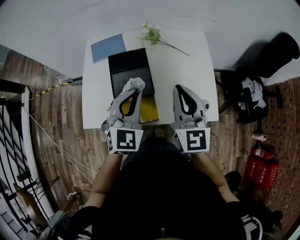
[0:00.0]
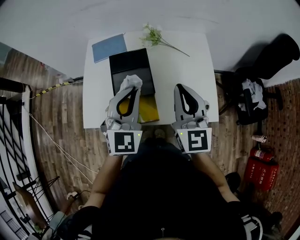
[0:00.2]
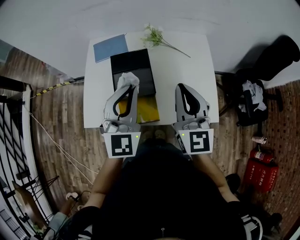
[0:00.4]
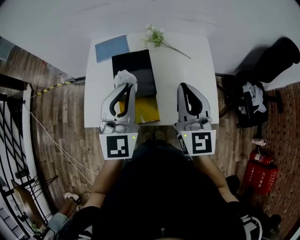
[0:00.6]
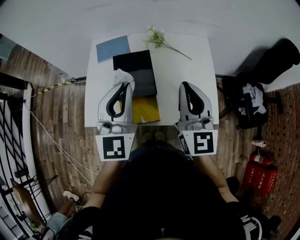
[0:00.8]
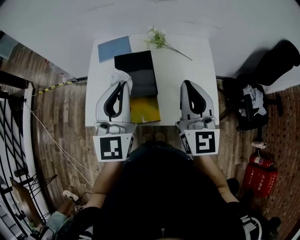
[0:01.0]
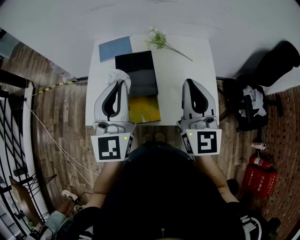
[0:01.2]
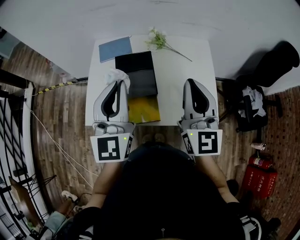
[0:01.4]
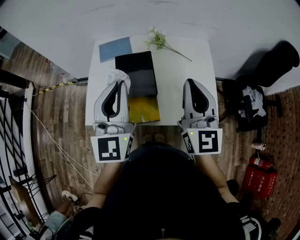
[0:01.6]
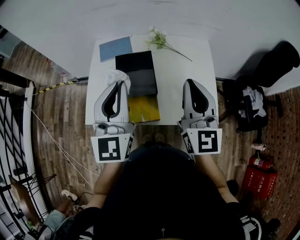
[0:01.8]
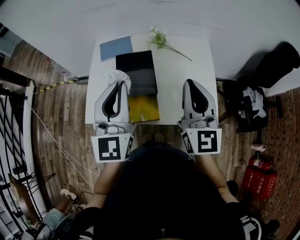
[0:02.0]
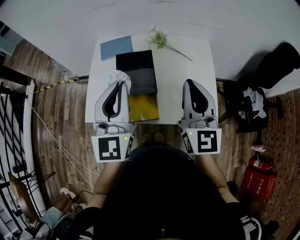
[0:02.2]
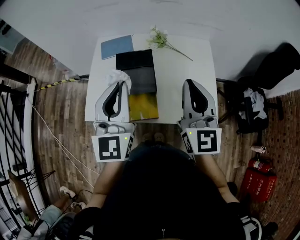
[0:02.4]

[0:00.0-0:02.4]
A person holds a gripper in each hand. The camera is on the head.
0.0 to 1.2 s: The right gripper goes approximately 5 cm upward. Meanwhile the left gripper moves upward and to the left, approximately 15 cm, and swivels about 30 degrees.
1.2 to 2.4 s: There are only small adjustments of the grippers.

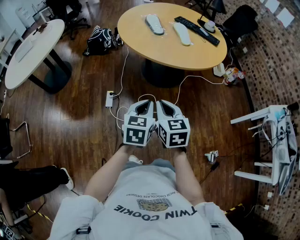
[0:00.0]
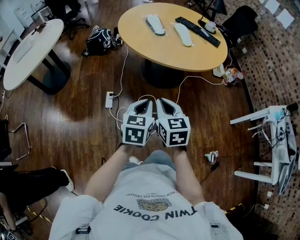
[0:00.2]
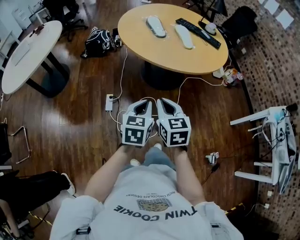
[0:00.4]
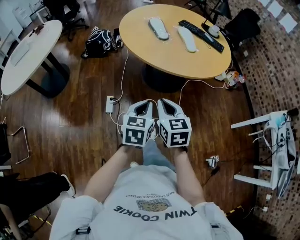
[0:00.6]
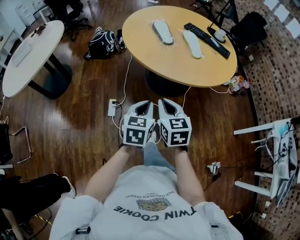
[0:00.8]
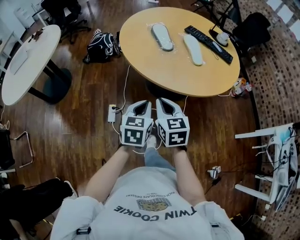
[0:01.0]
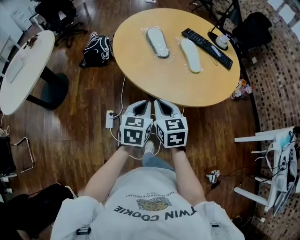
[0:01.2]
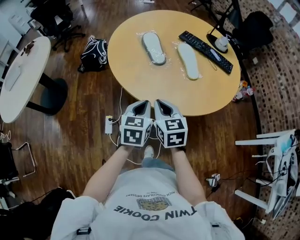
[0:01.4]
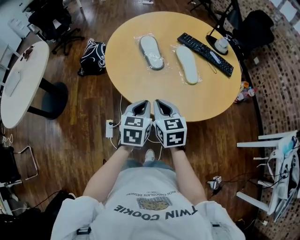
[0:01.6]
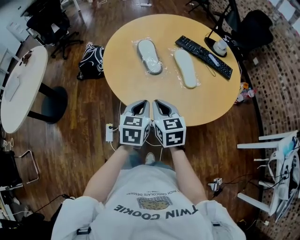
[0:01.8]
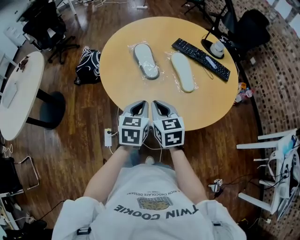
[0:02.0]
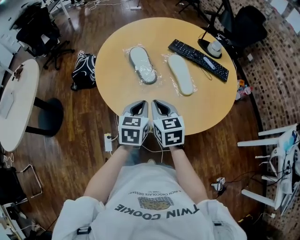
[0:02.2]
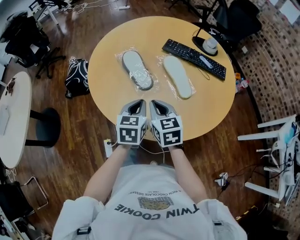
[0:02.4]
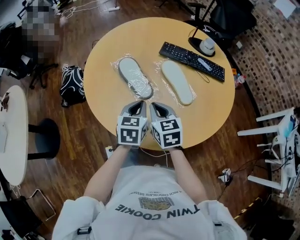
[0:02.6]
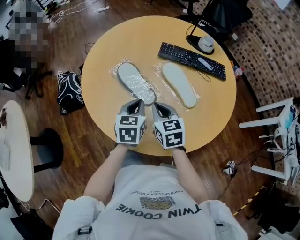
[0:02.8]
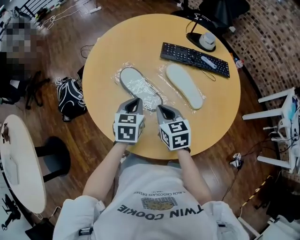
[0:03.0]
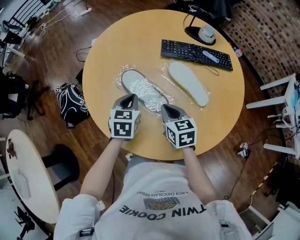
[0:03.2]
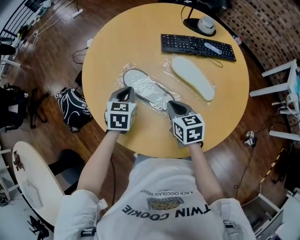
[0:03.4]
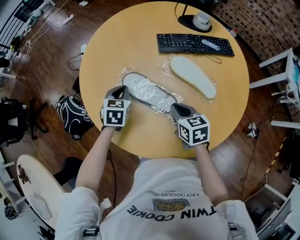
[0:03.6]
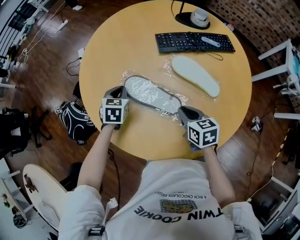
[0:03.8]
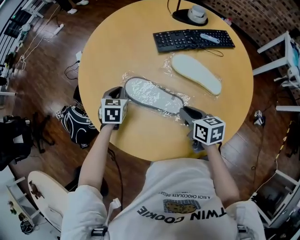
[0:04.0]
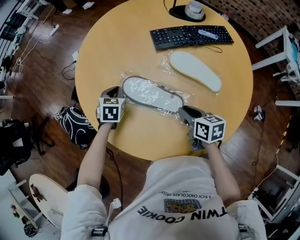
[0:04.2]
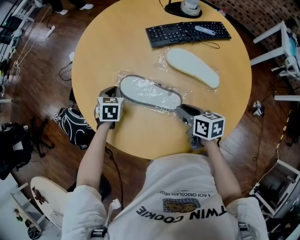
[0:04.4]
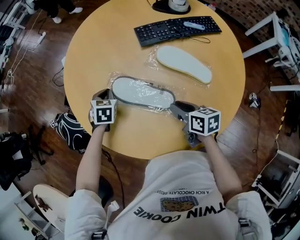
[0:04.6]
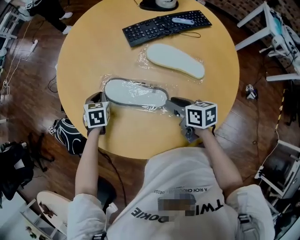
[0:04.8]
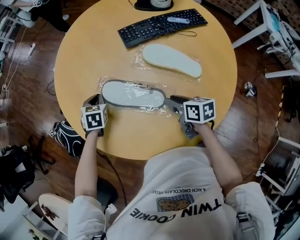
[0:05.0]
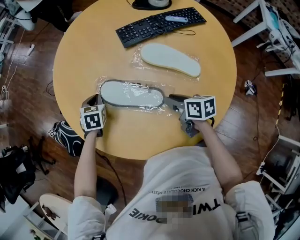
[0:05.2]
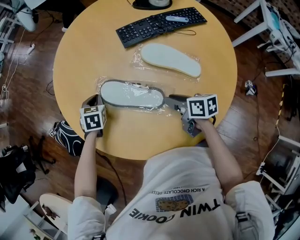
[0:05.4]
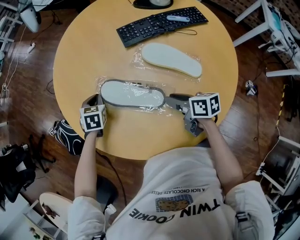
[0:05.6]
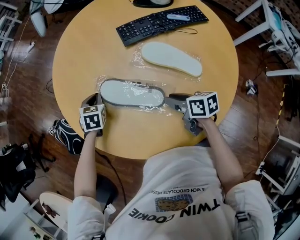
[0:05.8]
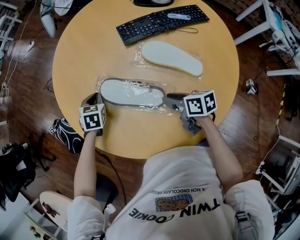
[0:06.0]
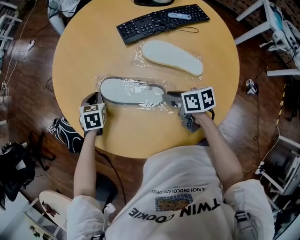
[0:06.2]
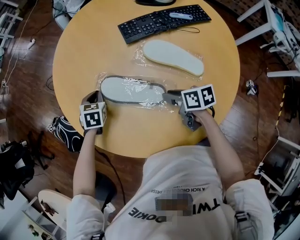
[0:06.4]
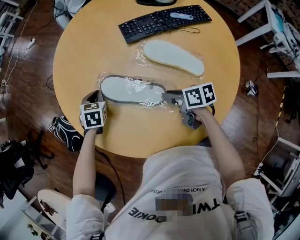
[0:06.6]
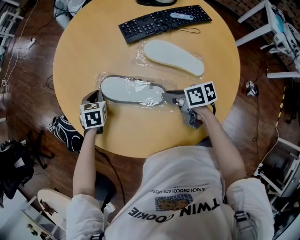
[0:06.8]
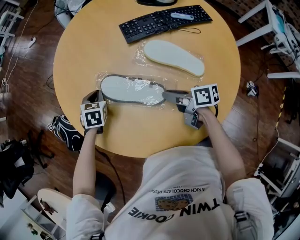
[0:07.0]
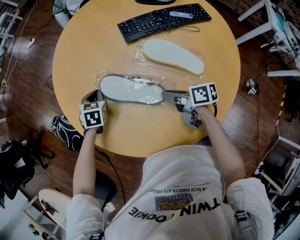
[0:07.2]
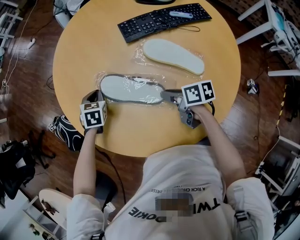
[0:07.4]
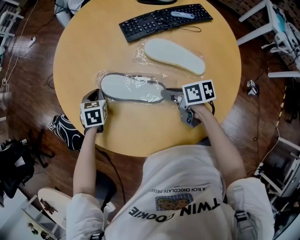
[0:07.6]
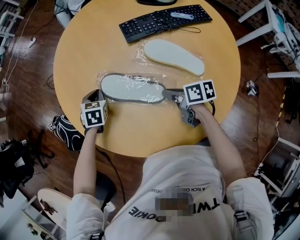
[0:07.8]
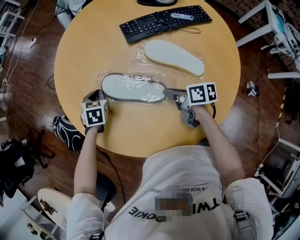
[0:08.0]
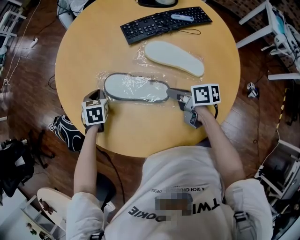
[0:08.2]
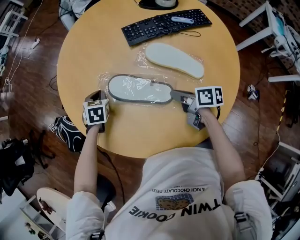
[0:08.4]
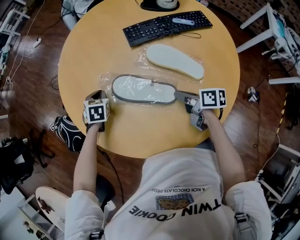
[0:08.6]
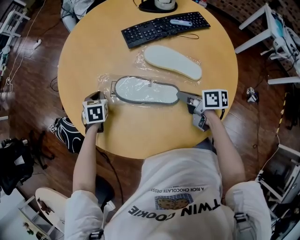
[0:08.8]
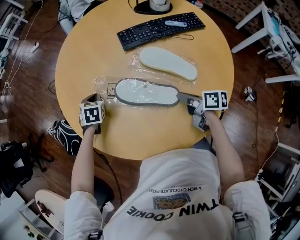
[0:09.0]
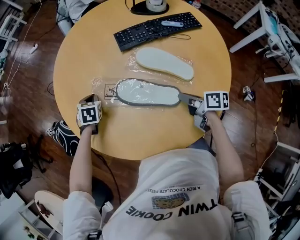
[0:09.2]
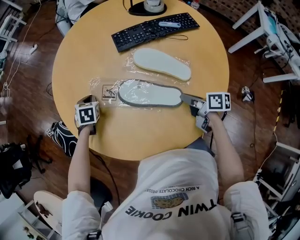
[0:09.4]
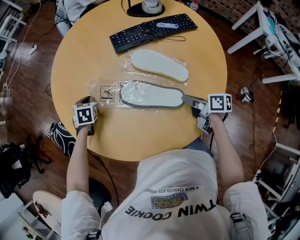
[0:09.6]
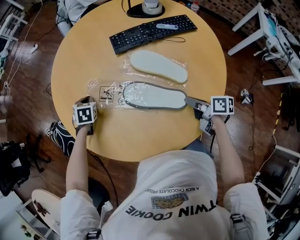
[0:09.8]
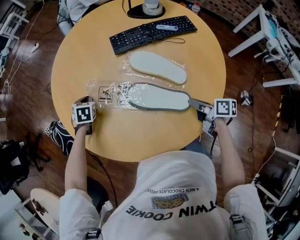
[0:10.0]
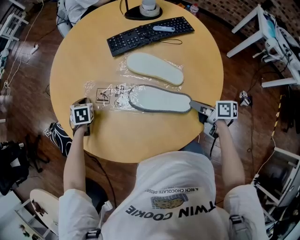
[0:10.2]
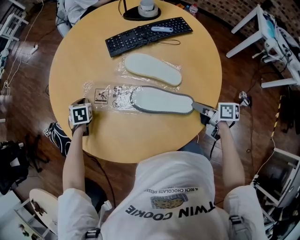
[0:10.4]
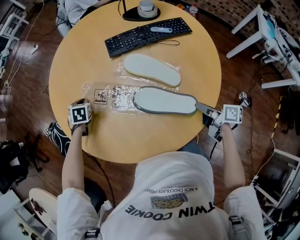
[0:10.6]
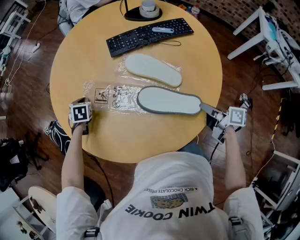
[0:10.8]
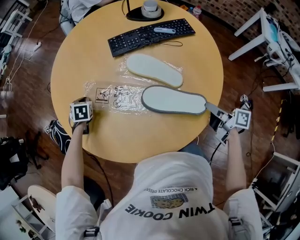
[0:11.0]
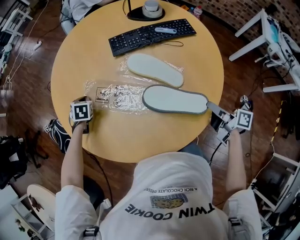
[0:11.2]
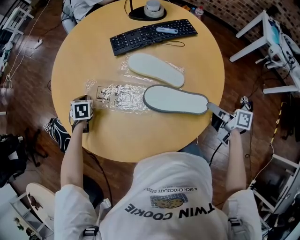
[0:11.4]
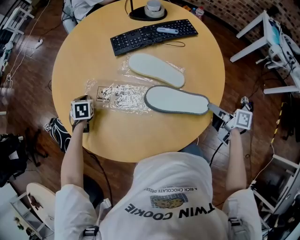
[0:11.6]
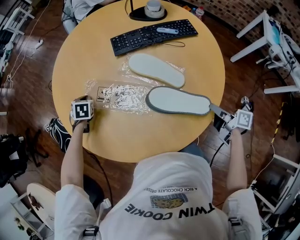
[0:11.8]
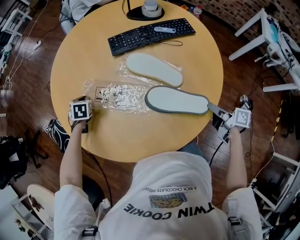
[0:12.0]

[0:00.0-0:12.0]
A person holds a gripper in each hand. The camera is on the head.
0.0 to 1.6 s: The two grippers go about 40 cm forward.
1.6 to 3.0 s: The grippers both shift forward by some 30 cm. The left gripper swivels about 20 degrees. Meanwhile the right gripper changes its angle by approximately 20 degrees.
3.0 to 4.4 s: The right gripper is displaced downward by some 10 cm, turns by roughly 40 degrees, and opens. Meanwhile the left gripper is displaced forward, to the left and downward by about 25 cm, and turns by roughly 30 degrees.
4.4 to 6.0 s: The grippers make only small movements.
6.0 to 7.6 s: There are only small adjustments of the grippers.
7.6 to 9.0 s: The right gripper travels to the right and backward by approximately 10 cm.
9.0 to 10.4 s: The right gripper is displaced backward and to the right by roughly 15 cm.
10.4 to 12.0 s: The right gripper is displaced to the right by approximately 5 cm.

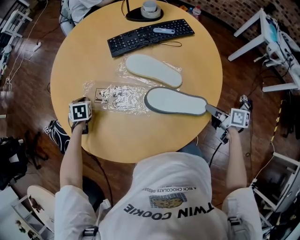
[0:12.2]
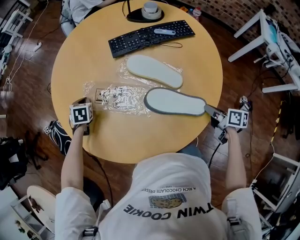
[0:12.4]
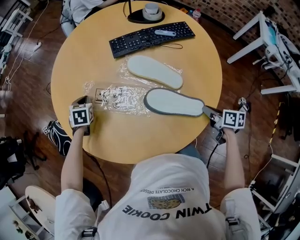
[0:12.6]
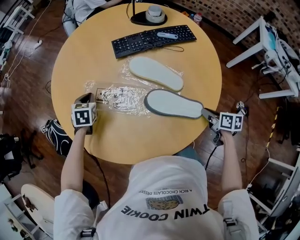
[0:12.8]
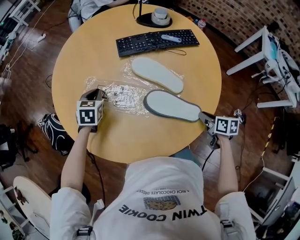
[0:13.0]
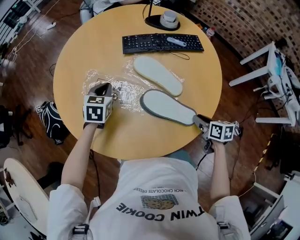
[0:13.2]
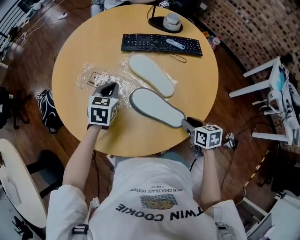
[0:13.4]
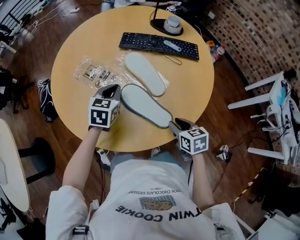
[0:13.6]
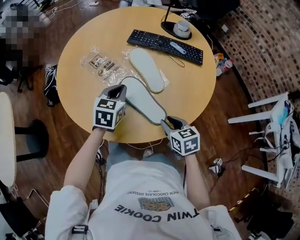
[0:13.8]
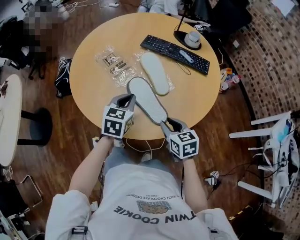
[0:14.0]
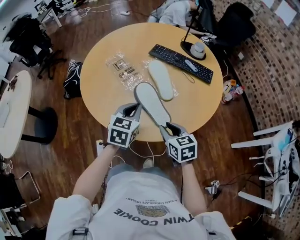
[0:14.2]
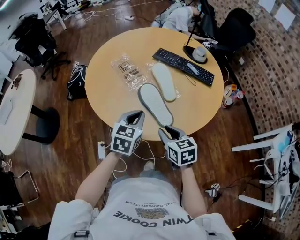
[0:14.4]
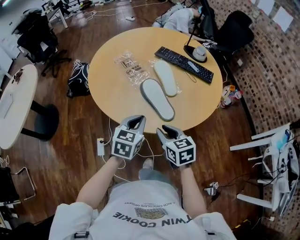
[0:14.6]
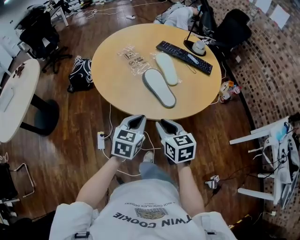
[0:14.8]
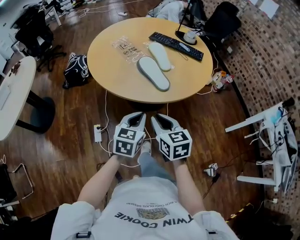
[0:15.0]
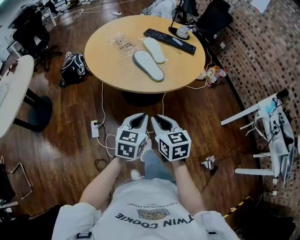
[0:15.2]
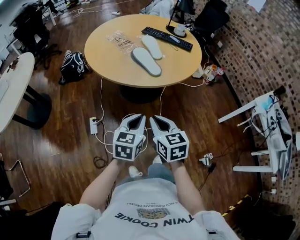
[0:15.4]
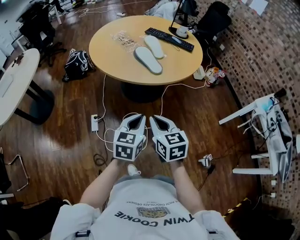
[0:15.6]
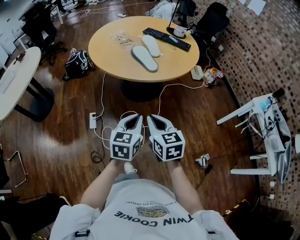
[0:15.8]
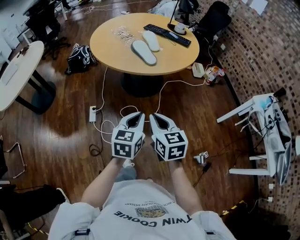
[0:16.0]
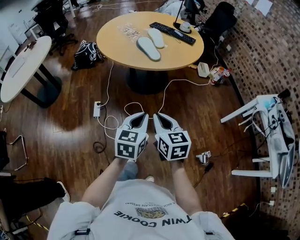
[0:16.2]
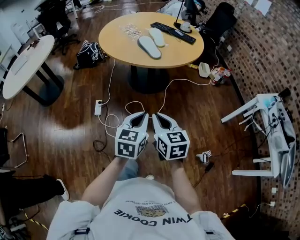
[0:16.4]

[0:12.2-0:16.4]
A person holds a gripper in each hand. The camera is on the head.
12.2 to 13.6 s: The left gripper heads to the right, backward and upward, covering about 30 cm, and rotates about 30 degrees, while the right gripper rotates around the line of its fingers by about 50 degrees, counterclockwise from behind.
13.6 to 15.0 s: The left gripper travels backward by some 40 cm, while the right gripper travels backward, upward and to the left by some 30 cm, and turns by roughly 30 degrees.
15.0 to 16.4 s: The grippers both shift backward by approximately 30 cm.

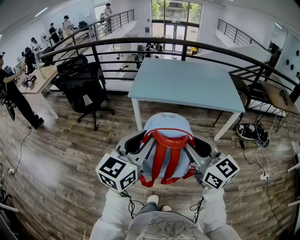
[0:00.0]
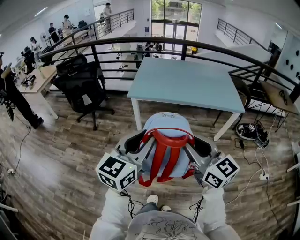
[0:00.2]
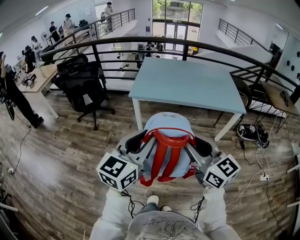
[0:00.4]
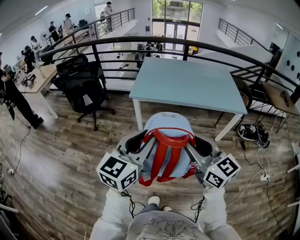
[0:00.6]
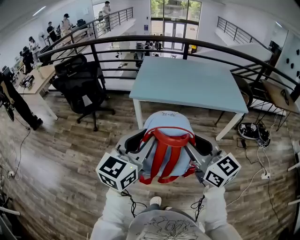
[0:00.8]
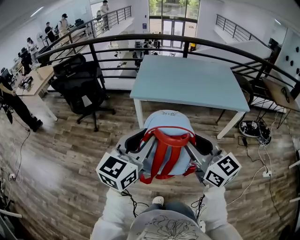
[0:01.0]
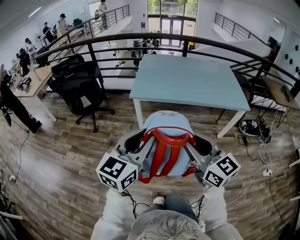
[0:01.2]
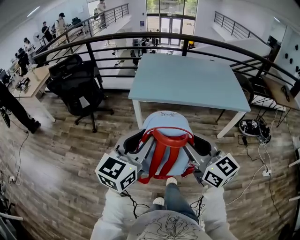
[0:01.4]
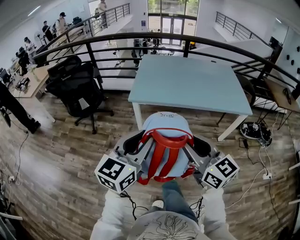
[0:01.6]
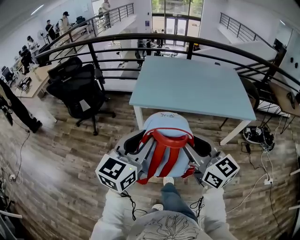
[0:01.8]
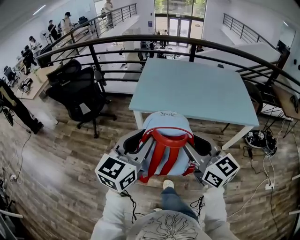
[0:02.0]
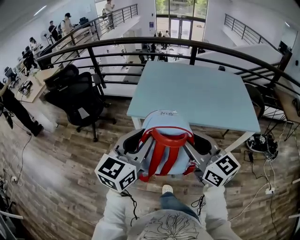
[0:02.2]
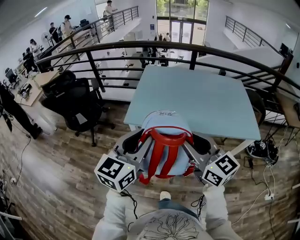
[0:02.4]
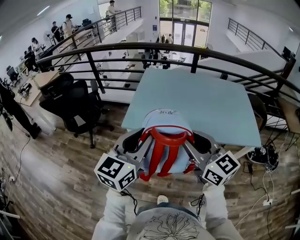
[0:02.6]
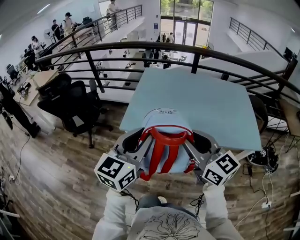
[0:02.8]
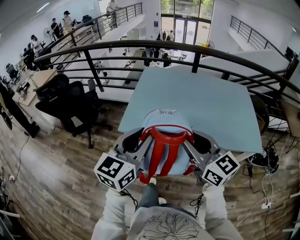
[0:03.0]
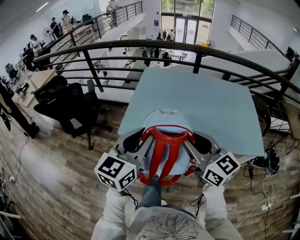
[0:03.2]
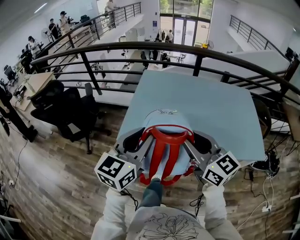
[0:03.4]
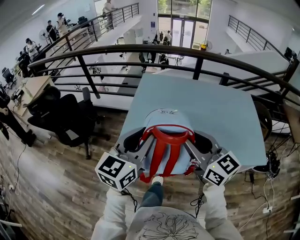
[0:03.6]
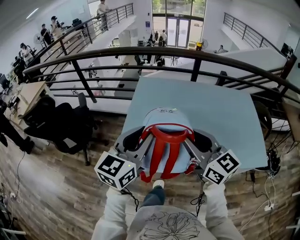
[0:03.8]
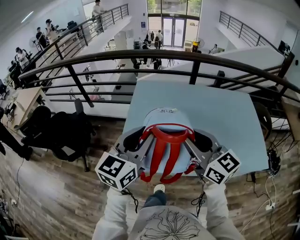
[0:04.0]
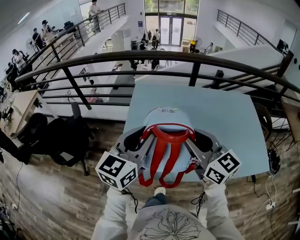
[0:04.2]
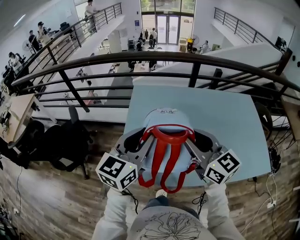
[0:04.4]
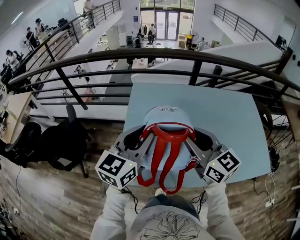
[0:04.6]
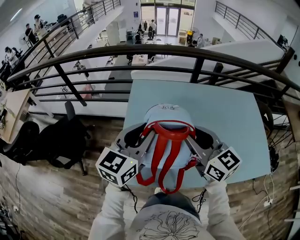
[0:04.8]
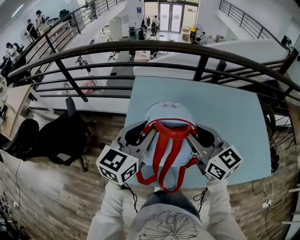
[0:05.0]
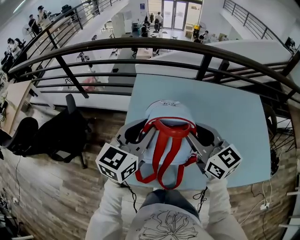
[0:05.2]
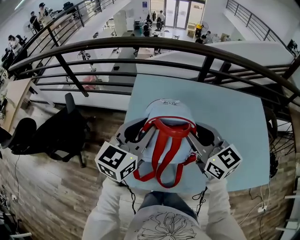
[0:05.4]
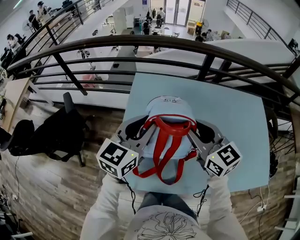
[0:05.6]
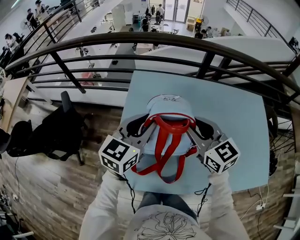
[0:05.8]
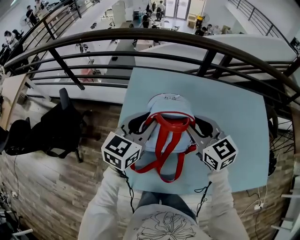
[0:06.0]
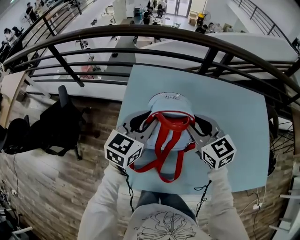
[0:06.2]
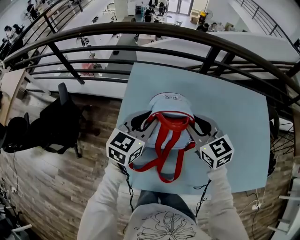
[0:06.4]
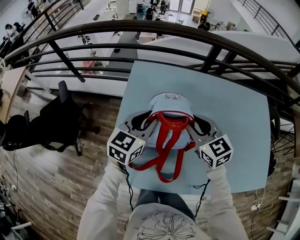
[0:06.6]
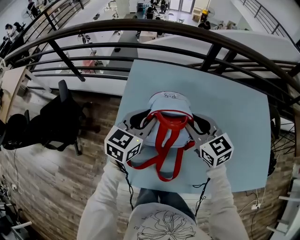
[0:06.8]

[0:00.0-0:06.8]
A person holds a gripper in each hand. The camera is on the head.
0.0 to 1.4 s: The two grippers go approximately 10 cm forward and to the left.
1.4 to 2.8 s: The two grippers go approximately 35 cm forward.
2.8 to 4.0 s: Both grippers move forward, approximately 30 cm.
4.0 to 5.4 s: The two grippers go about 20 cm forward.
5.4 to 6.8 s: Both grippers travel together downward and forward, some 15 cm.
